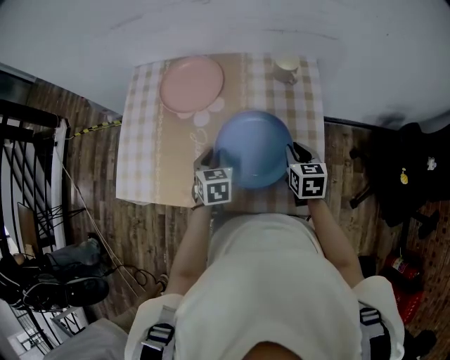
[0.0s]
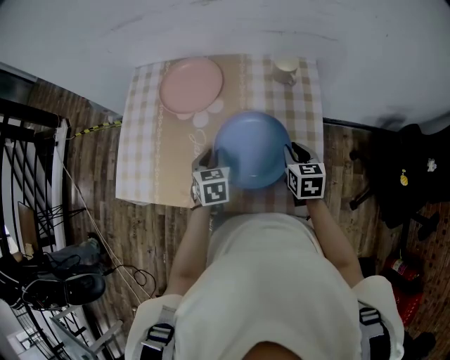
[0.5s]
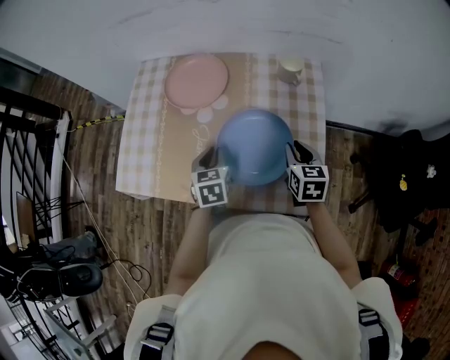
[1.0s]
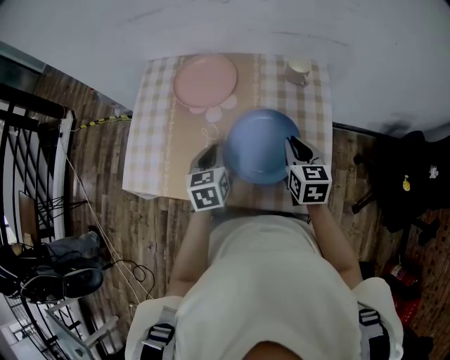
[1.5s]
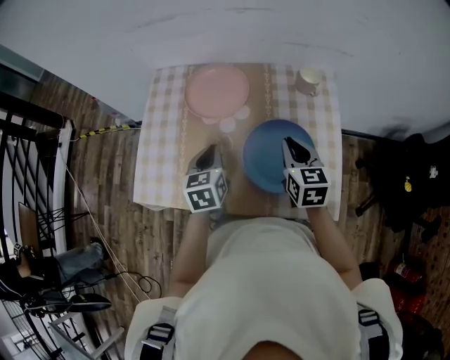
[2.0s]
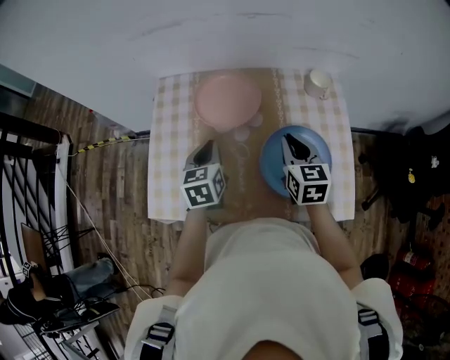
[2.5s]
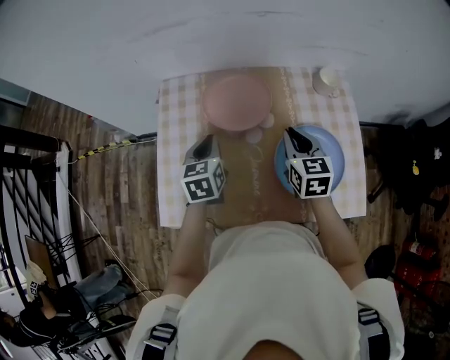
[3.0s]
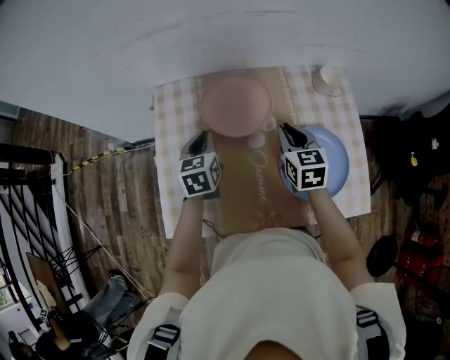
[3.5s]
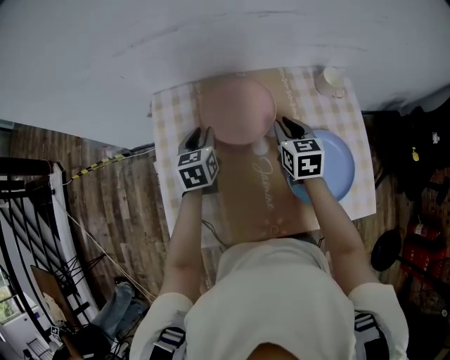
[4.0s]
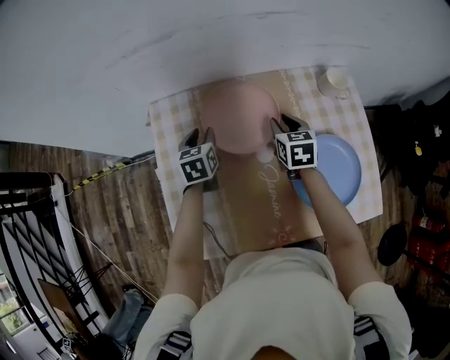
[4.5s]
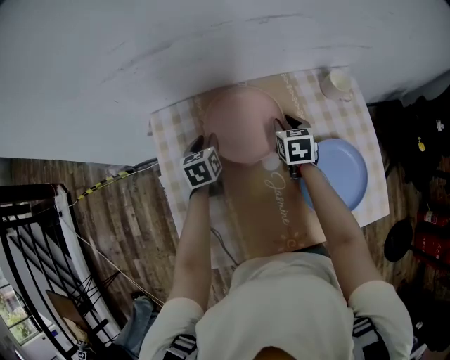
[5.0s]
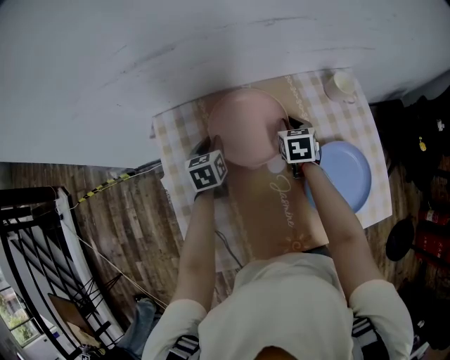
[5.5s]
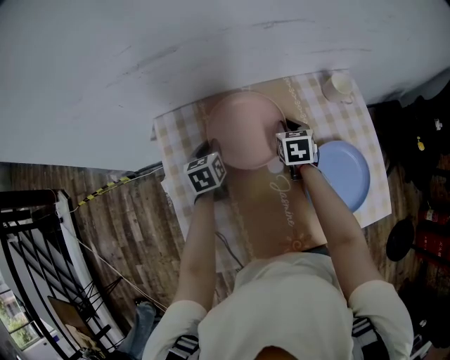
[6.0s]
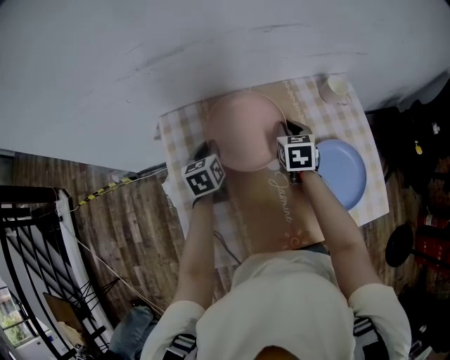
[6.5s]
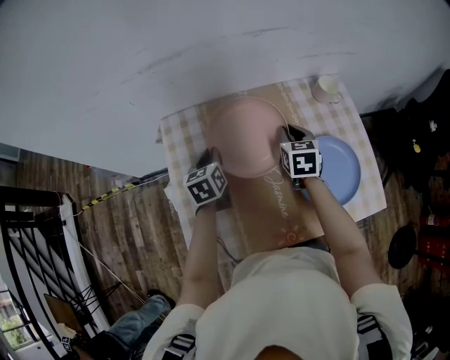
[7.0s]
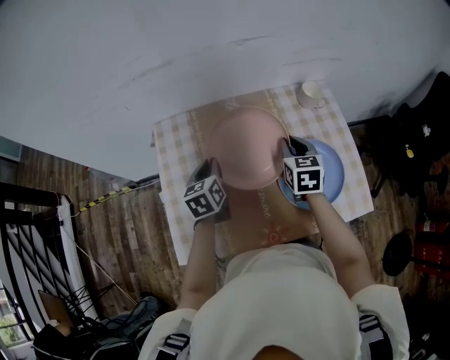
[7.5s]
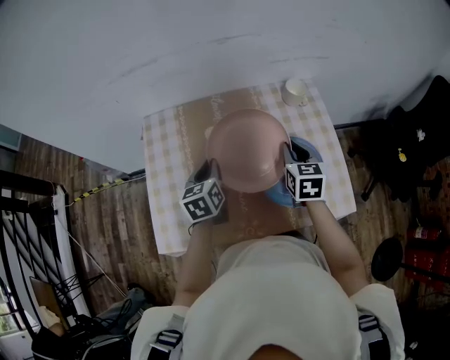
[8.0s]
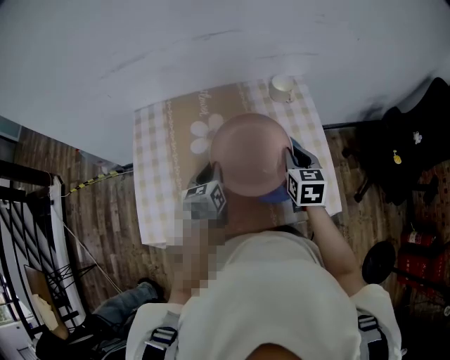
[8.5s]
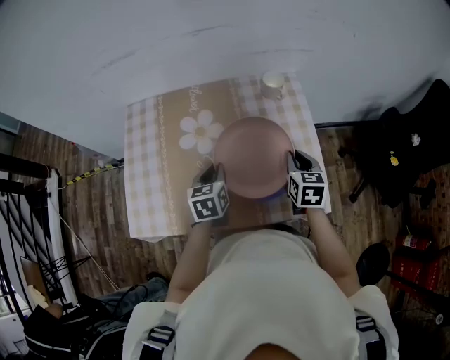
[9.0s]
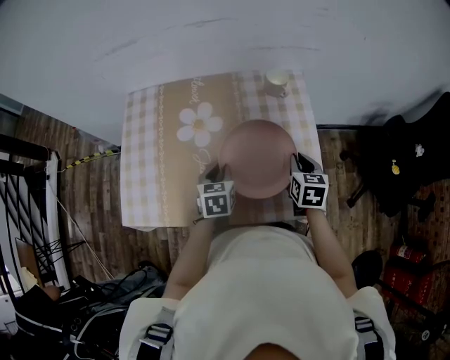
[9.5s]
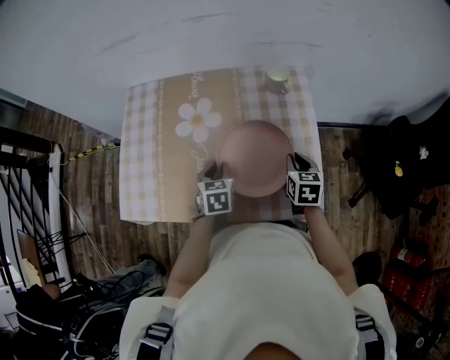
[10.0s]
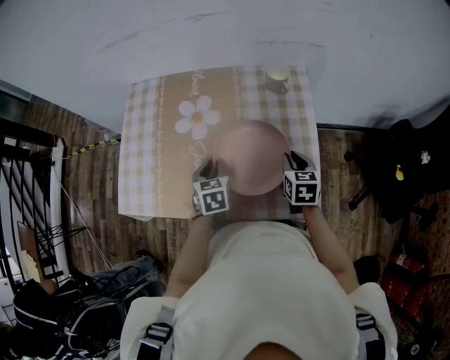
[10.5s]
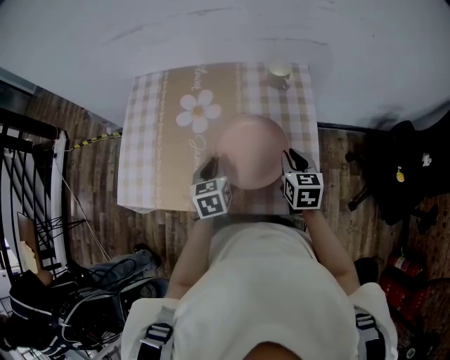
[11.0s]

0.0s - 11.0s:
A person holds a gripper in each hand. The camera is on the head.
0.0s - 2.0s: The left gripper travels upward and to the left by roughly 10 cm, while the right gripper moves to the left and upward, approximately 15 cm.
2.0s - 3.5s: The right gripper shifts some 15 cm to the left and forward. The left gripper goes about 20 cm forward and to the left.
3.5s - 5.5s: Both grippers travel together forward and downward, roughly 15 cm. The right gripper turns by roughly 20 degrees.
5.5s - 7.5s: The left gripper is displaced backward, upward and to the right by some 15 cm; the right gripper shifts approximately 20 cm upward, backward and to the right.
7.5s - 9.0s: The two grippers go roughly 20 cm to the right and backward.
9.0s - 11.0s: The left gripper changes place by about 5 cm.

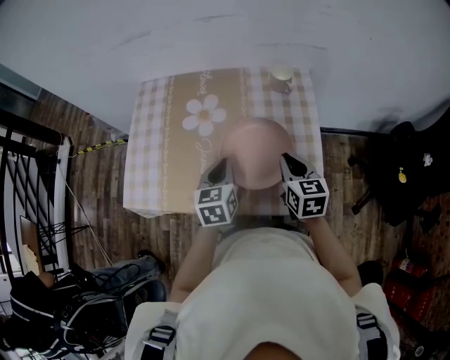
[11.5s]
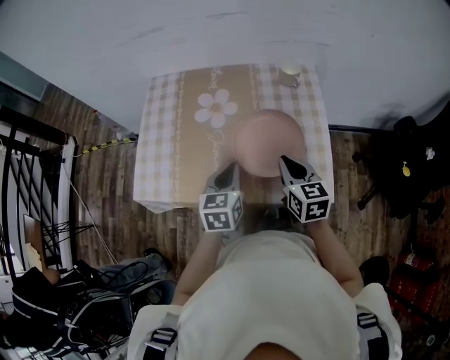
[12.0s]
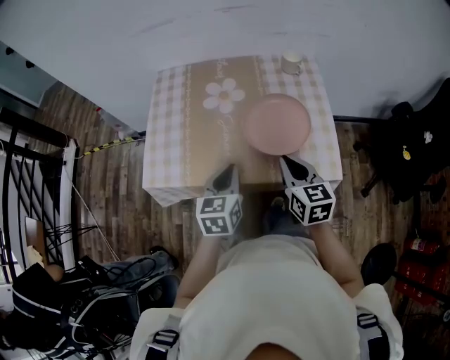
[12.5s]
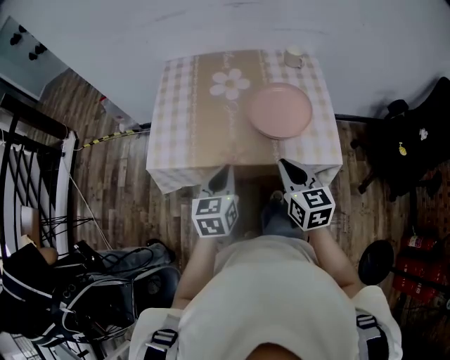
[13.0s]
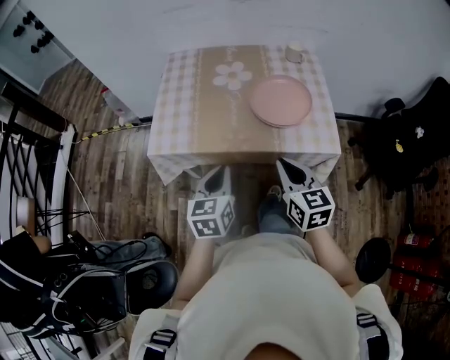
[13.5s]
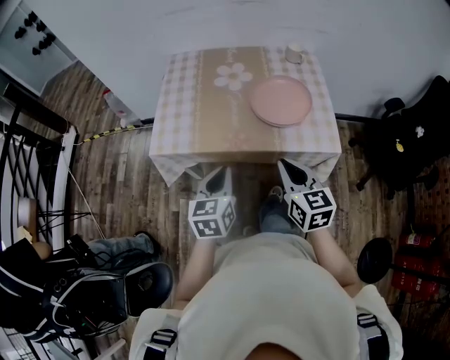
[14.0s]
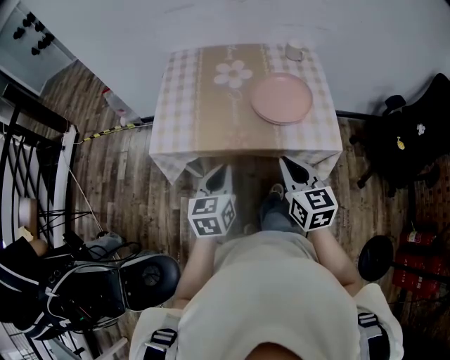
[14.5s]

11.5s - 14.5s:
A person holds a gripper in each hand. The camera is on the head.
11.5s - 13.0s: Both grippers move backward and to the left, approximately 25 cm.
13.0s - 14.5s: The two grippers go roughly 5 cm backward.

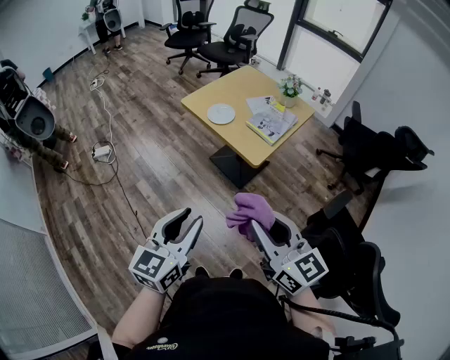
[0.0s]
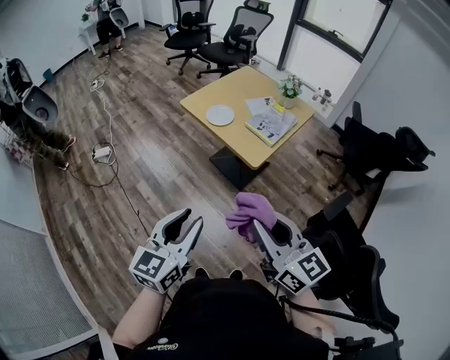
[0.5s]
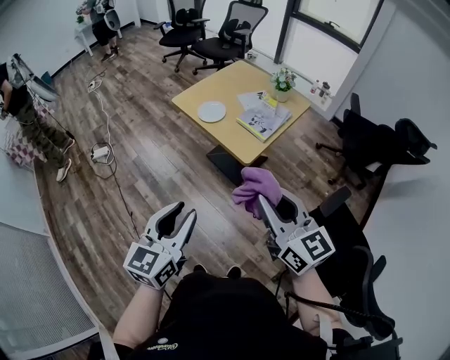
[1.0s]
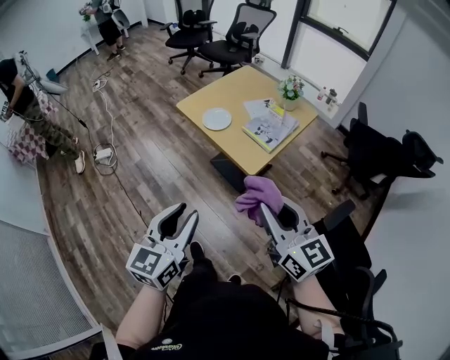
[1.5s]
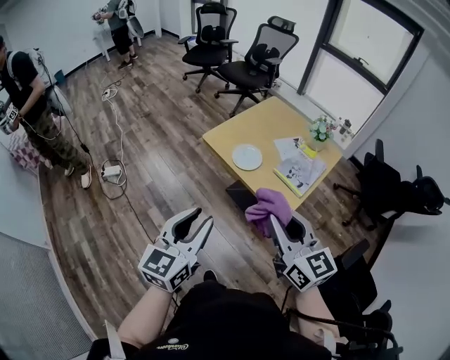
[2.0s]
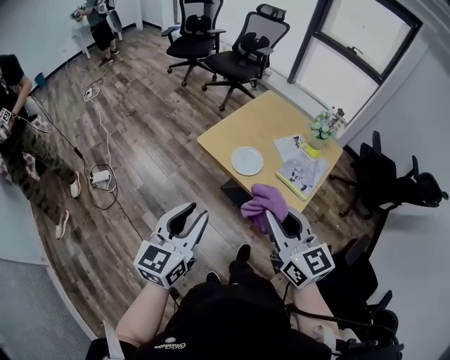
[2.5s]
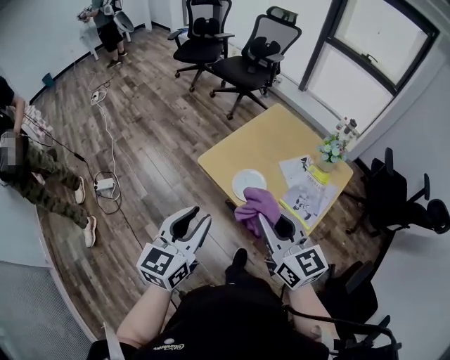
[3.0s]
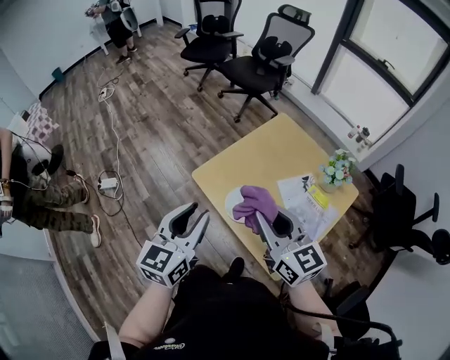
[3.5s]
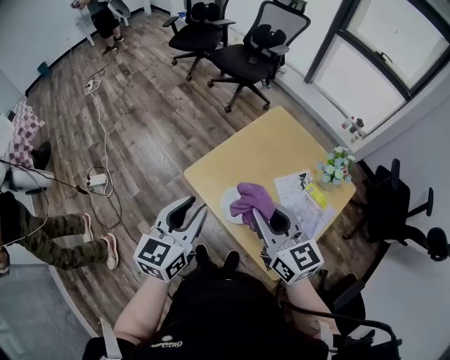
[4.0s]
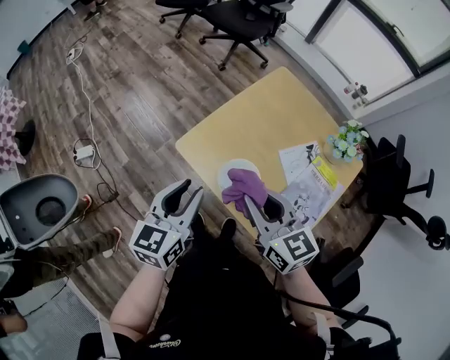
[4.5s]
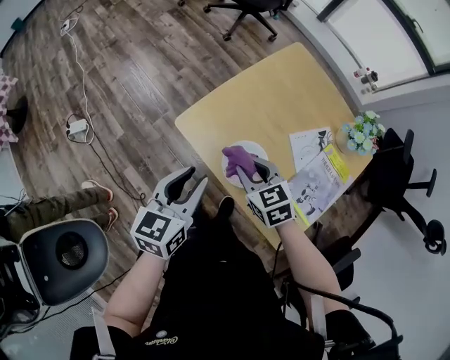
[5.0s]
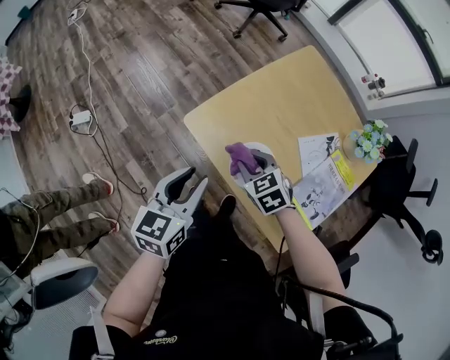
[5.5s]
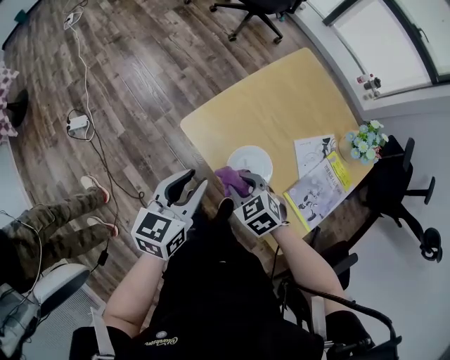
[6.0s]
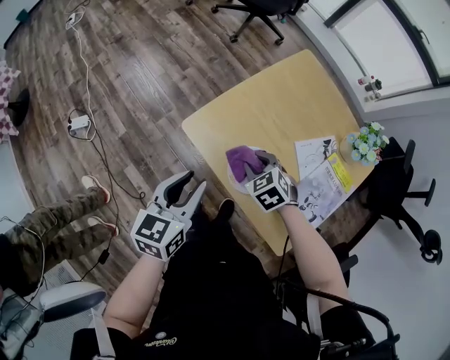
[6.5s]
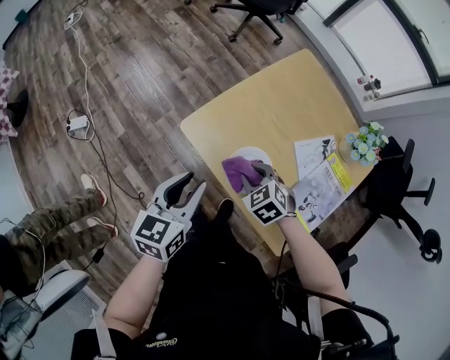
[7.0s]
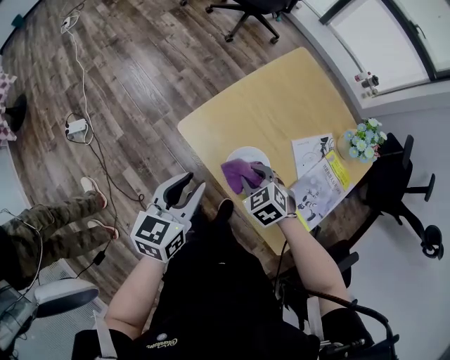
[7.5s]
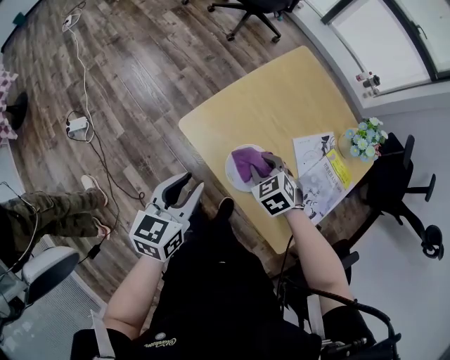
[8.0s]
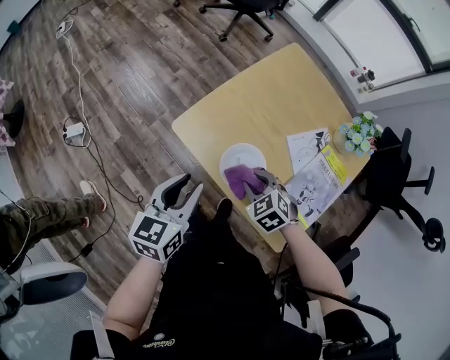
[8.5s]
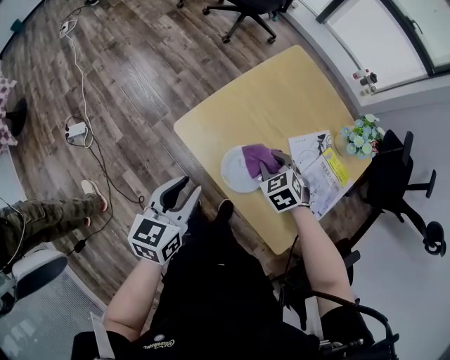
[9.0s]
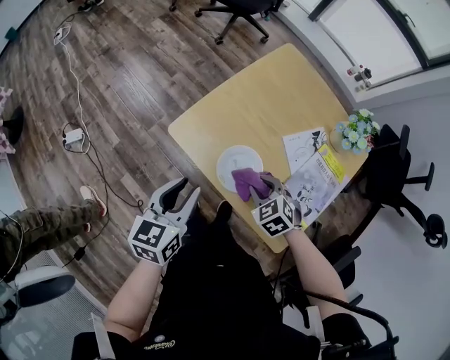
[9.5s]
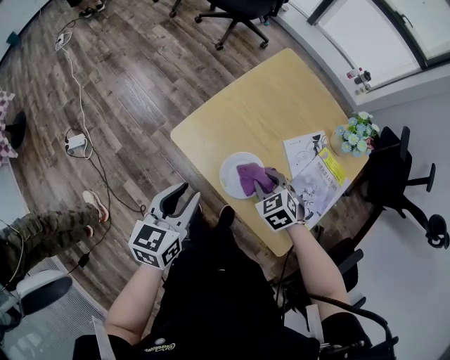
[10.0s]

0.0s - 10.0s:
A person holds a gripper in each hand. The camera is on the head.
0.0s - 2.0s: The grippers both shift forward by some 20 cm.
2.0s - 4.0s: Both grippers travel together forward, some 35 cm.
4.0s - 6.0s: The right gripper heads downward, covering approximately 30 cm, and tilts its fingers about 50 degrees downward, while the left gripper is displaced downward by approximately 15 cm.
6.0s - 8.0s: The right gripper heads to the right and forward, covering approximately 10 cm.
8.0s - 10.0s: The right gripper swings forward and backward, roughly 10 cm each way, with 2 reversals.

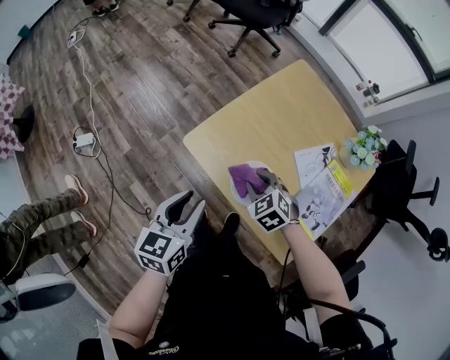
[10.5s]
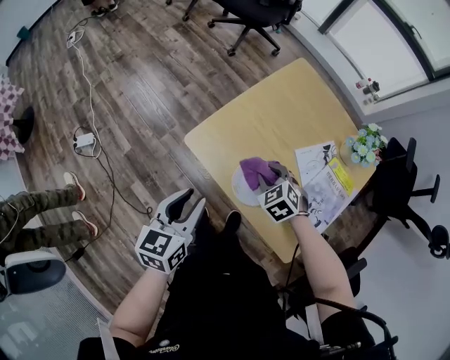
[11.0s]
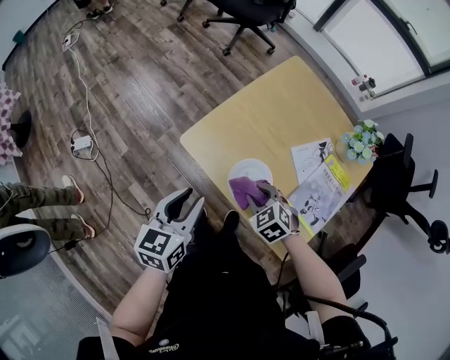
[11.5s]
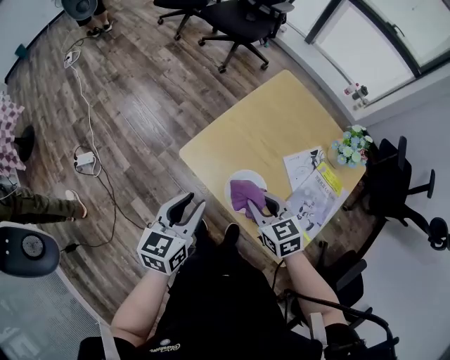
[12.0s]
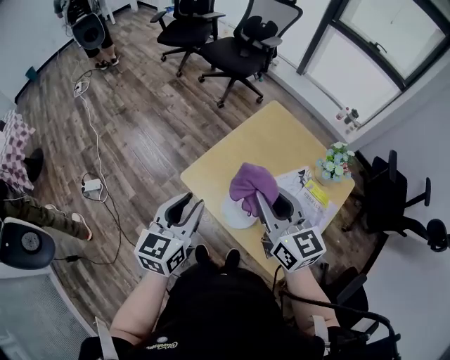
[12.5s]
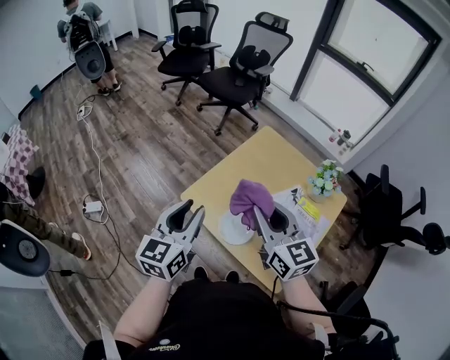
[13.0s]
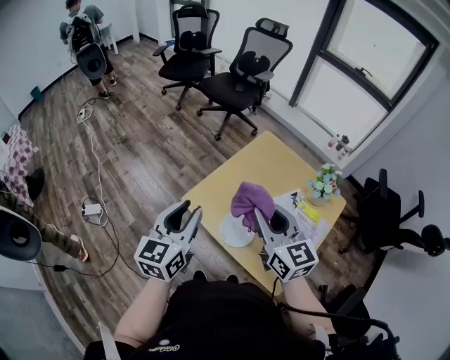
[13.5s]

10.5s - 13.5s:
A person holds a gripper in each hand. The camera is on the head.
10.5s - 12.0s: The right gripper shifts roughly 10 cm upward, and turns by about 30 degrees.
12.0s - 13.5s: The right gripper shifts roughly 20 cm upward, and angles its fingers upward, by about 30 degrees, while the left gripper is displaced upward by approximately 15 cm.
